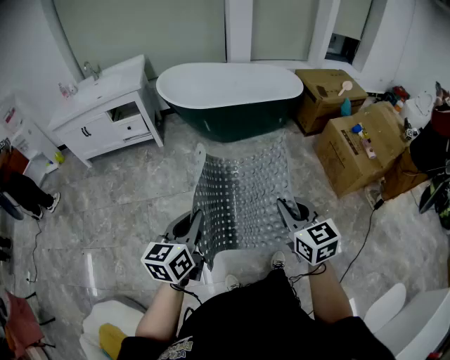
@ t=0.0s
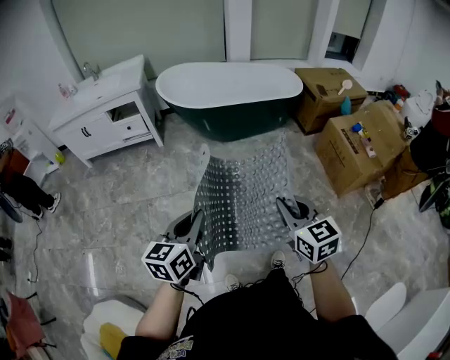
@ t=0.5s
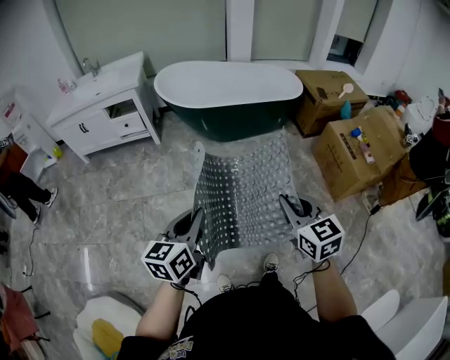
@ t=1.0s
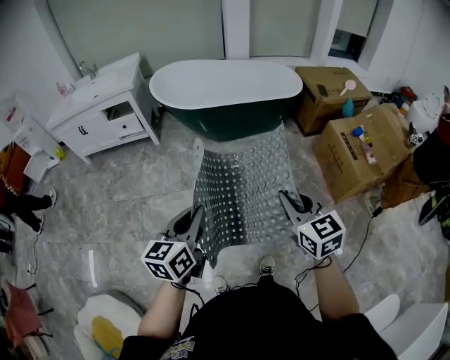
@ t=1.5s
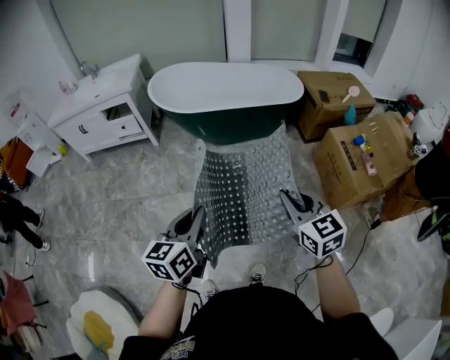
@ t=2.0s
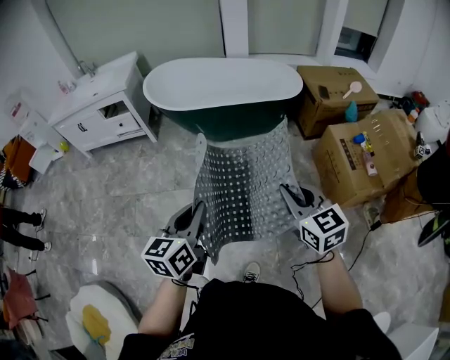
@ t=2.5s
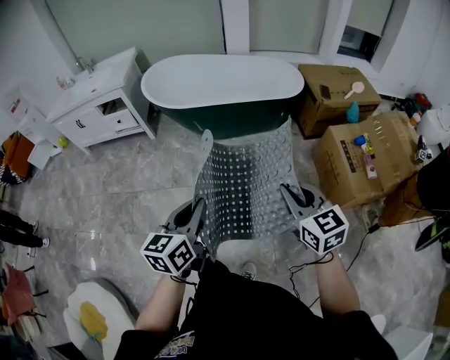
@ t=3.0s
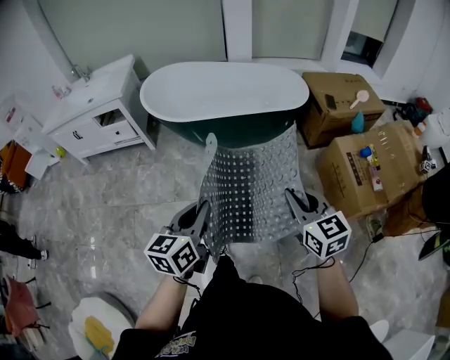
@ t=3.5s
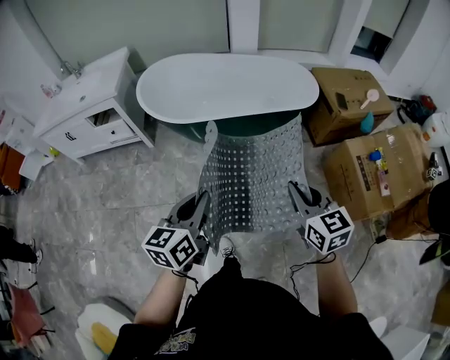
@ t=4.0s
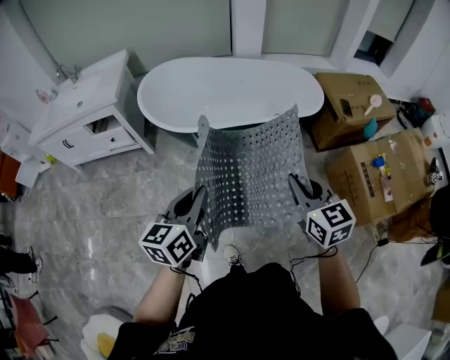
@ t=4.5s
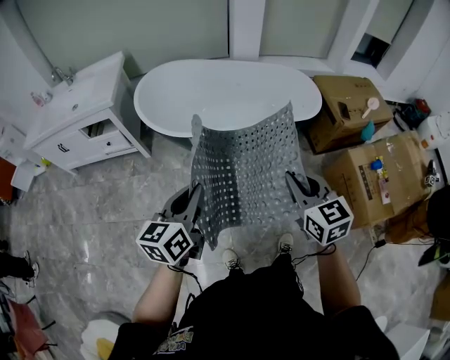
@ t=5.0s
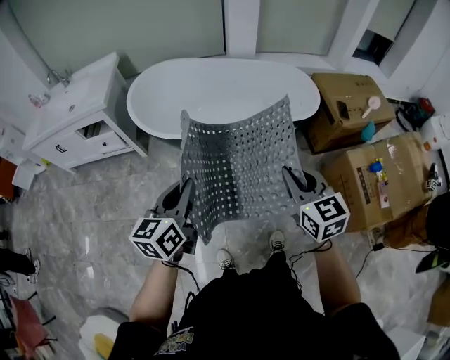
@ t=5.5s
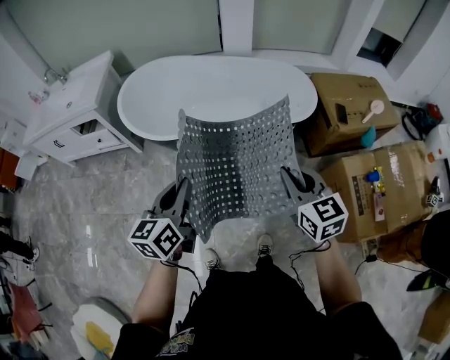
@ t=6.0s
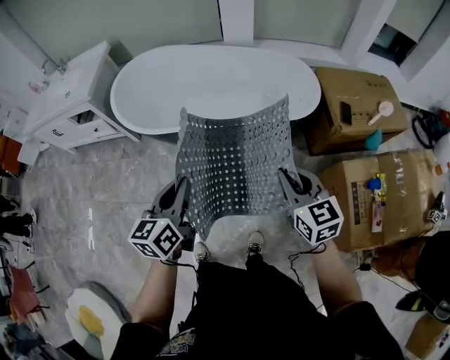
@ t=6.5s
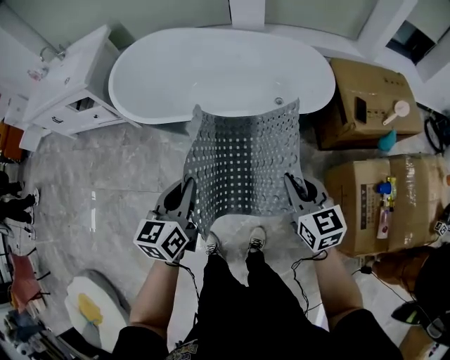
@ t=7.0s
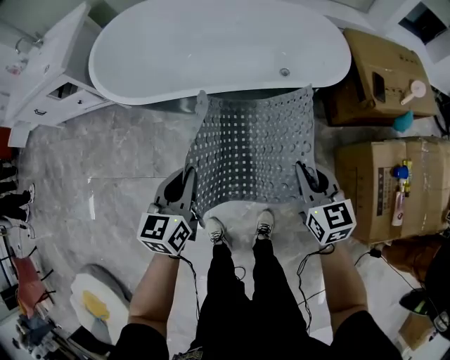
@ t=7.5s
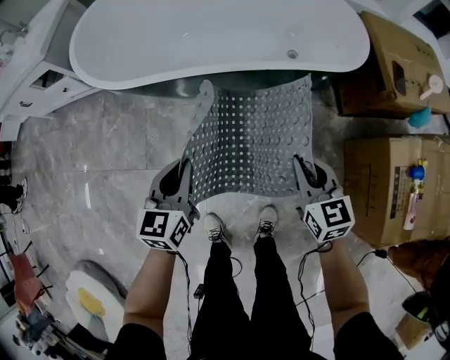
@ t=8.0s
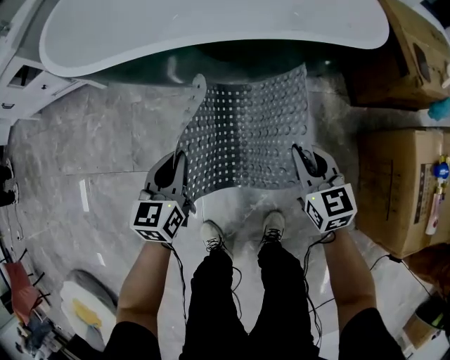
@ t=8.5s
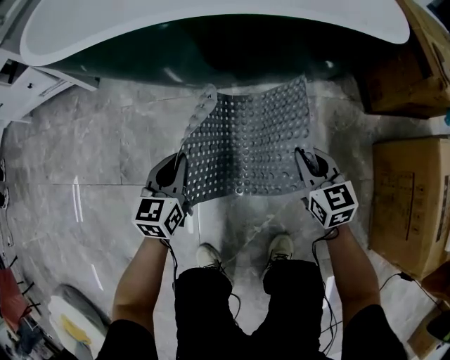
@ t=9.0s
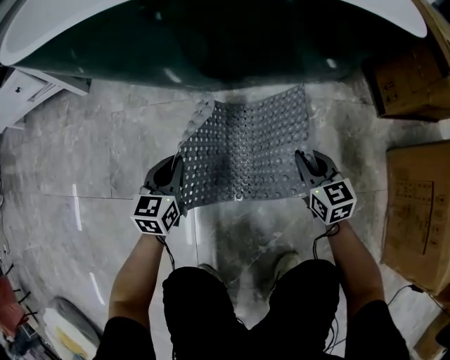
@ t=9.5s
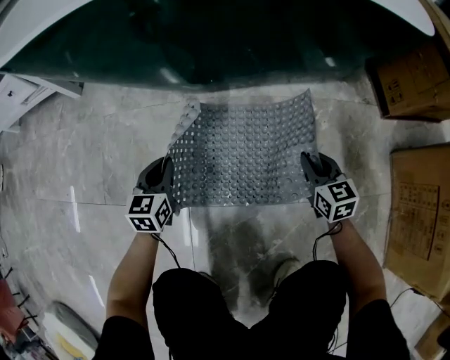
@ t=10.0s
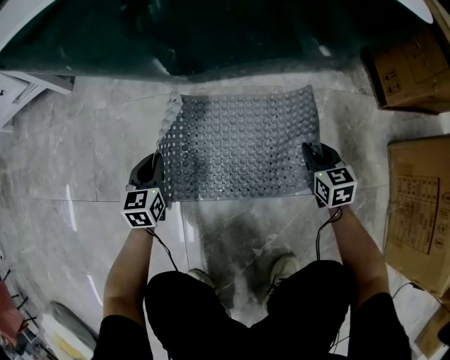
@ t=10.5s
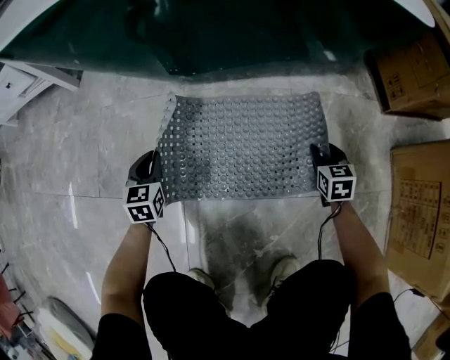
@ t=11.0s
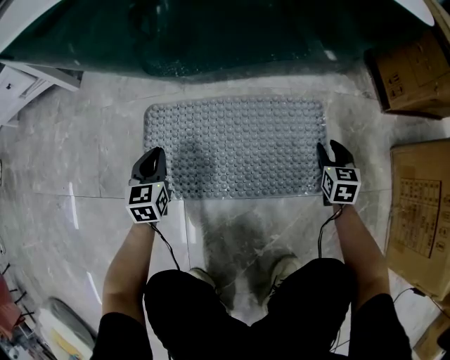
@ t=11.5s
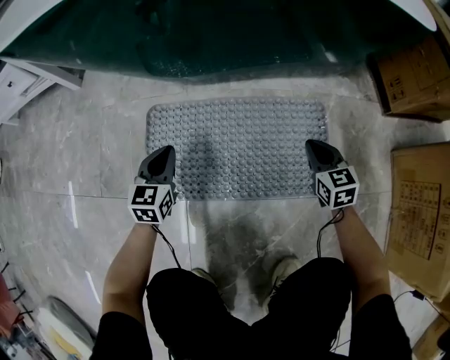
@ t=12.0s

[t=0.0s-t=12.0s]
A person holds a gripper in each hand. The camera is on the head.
t=0.0s to t=2.0s: The two grippers go roughly 20 cm to the right and forward.
t=2.0s to t=4.0s: The grippers both shift forward by some 30 cm.
t=4.0s to t=6.0s: The right gripper moves forward and to the right, some 20 cm, while the left gripper is displaced forward by roughly 20 cm.
t=6.0s to t=8.0s: Both grippers travel together downward, roughly 35 cm.
t=8.0s to t=10.0s: Both grippers move downward, some 50 cm.
t=10.0s to t=12.0s: The right gripper travels to the right and back again, roughly 10 cm each way, and opens, then closes once more.

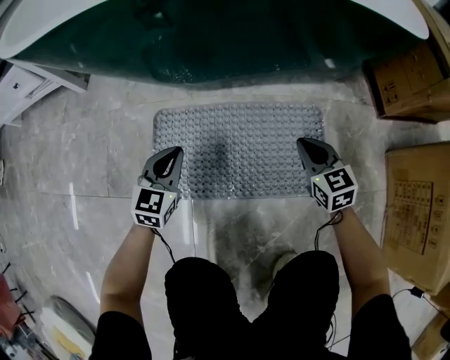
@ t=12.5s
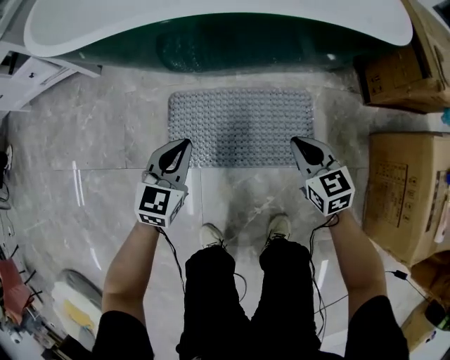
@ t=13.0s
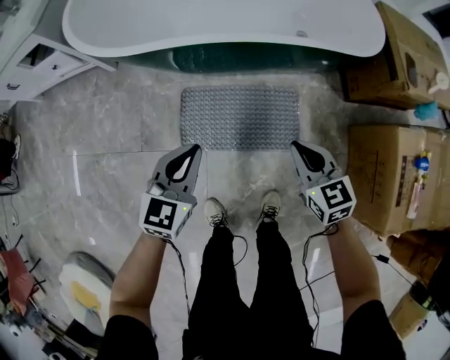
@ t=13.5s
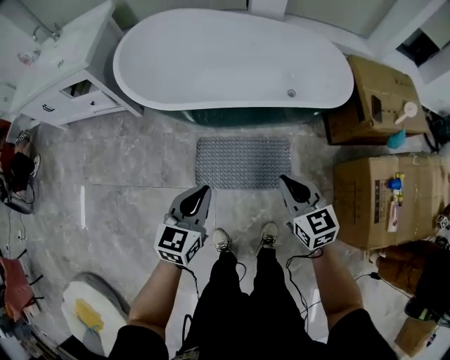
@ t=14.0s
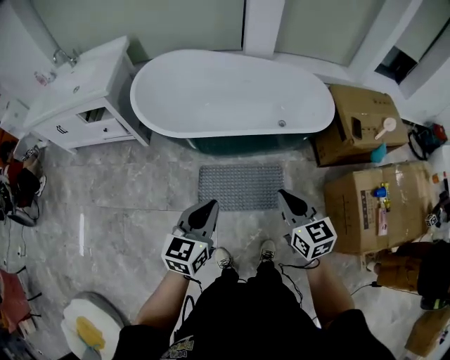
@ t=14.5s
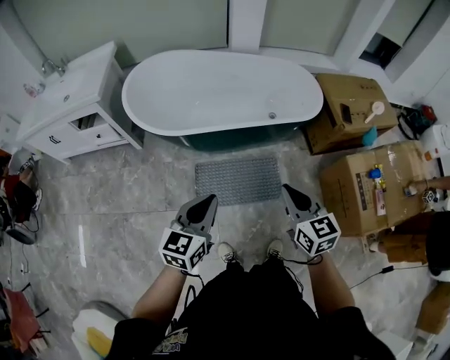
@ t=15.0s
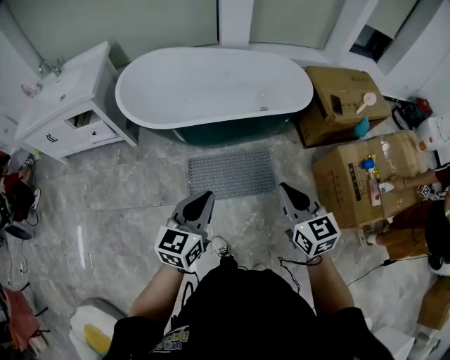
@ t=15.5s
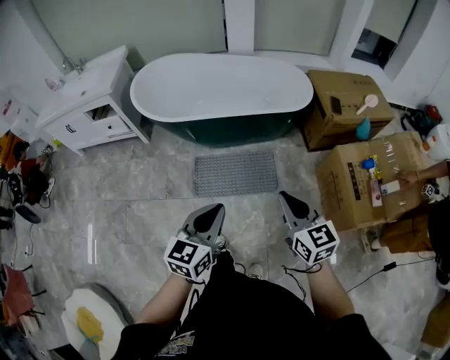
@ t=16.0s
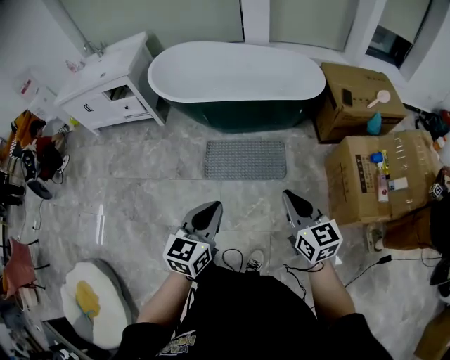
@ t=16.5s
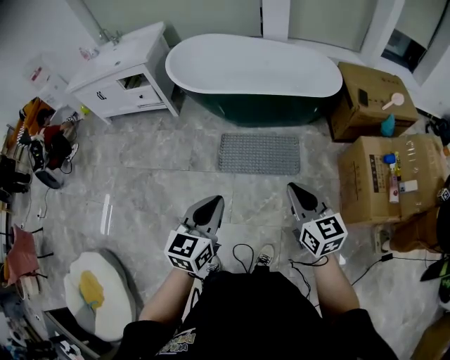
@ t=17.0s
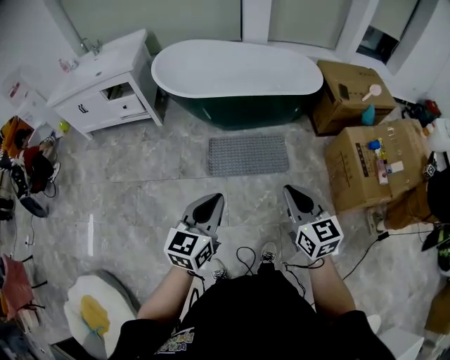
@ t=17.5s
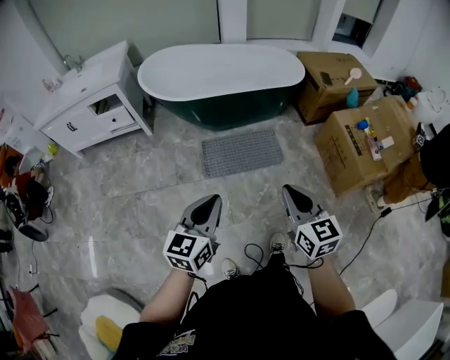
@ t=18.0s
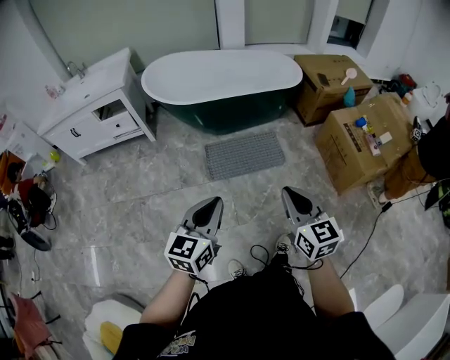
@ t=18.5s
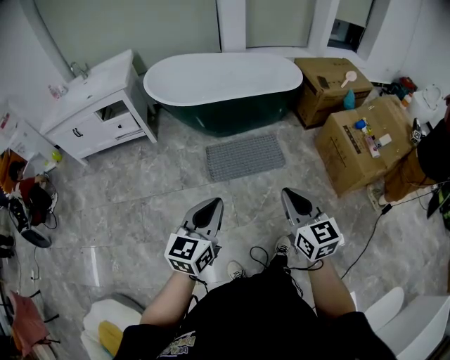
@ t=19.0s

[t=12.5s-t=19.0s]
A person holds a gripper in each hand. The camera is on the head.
t=12.5s to t=14.5s: Both grippers travel together upward, some 80 cm. The left gripper swivels roughly 20 degrees.
t=14.5s to t=17.0s: Both grippers travel together backward, some 35 cm.
t=17.0s to t=19.0s: The right gripper shifts approximately 25 cm backward and to the left; the left gripper heads to the left and backward, covering roughly 20 cm.

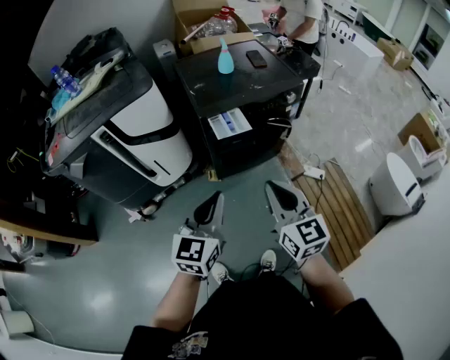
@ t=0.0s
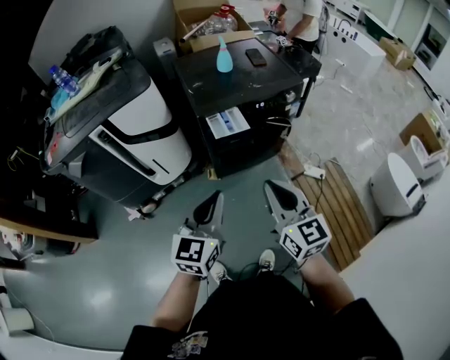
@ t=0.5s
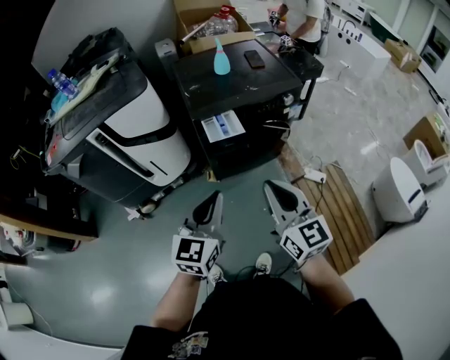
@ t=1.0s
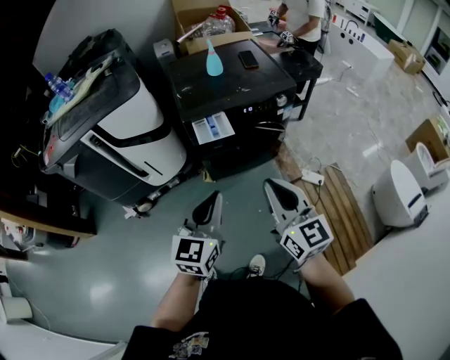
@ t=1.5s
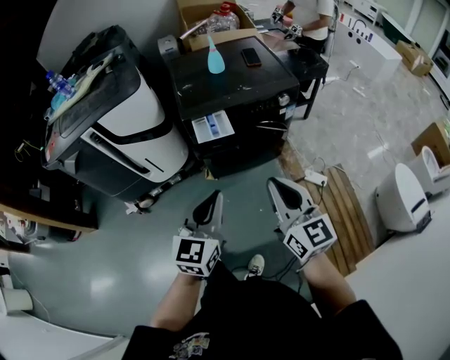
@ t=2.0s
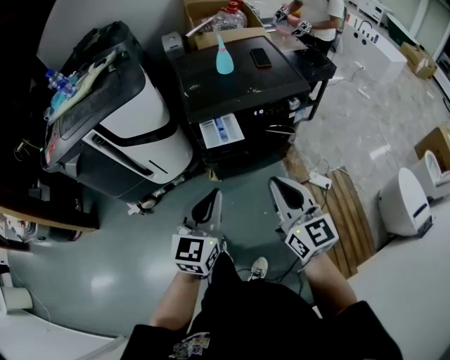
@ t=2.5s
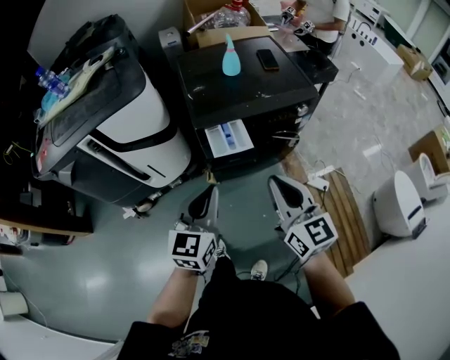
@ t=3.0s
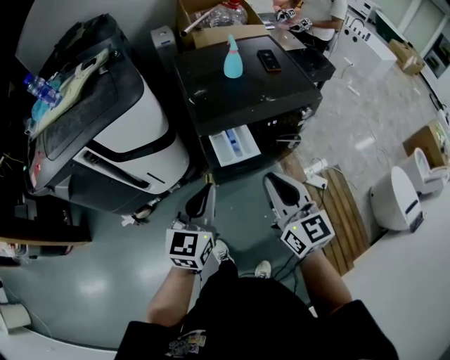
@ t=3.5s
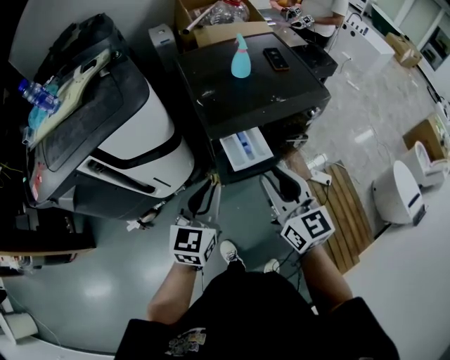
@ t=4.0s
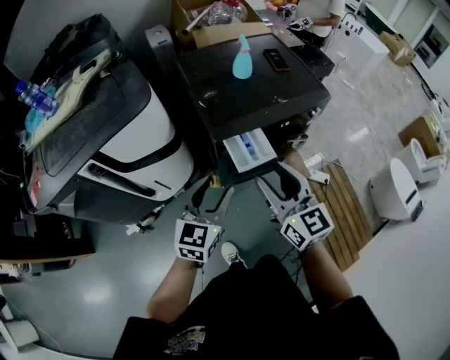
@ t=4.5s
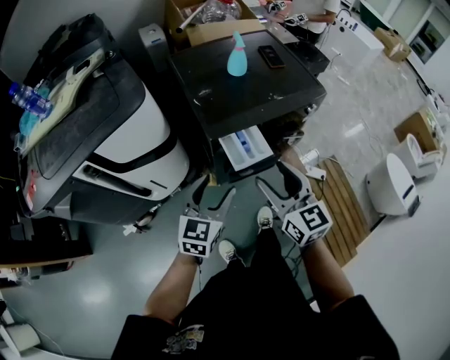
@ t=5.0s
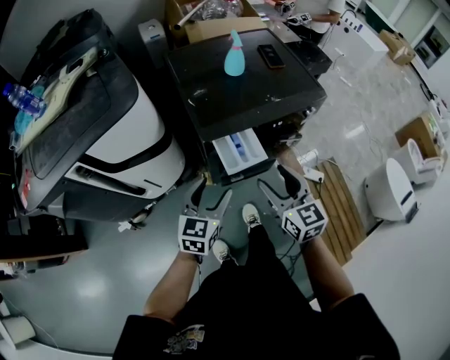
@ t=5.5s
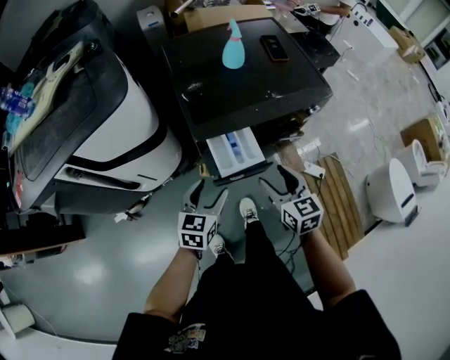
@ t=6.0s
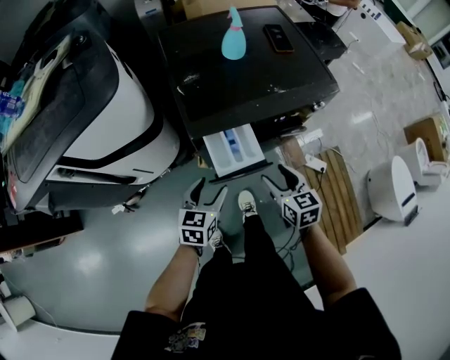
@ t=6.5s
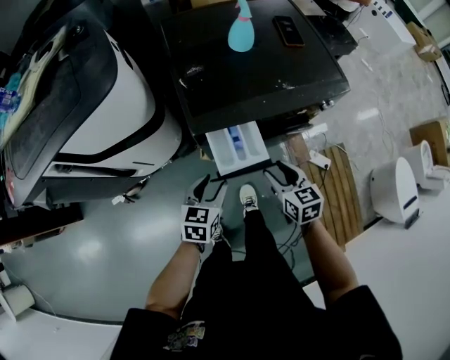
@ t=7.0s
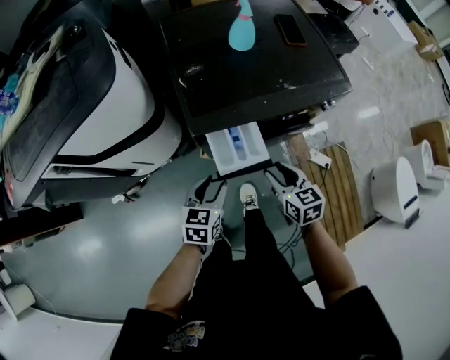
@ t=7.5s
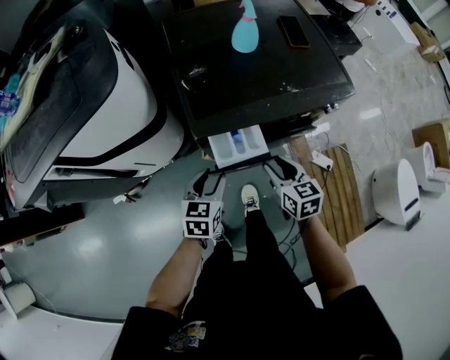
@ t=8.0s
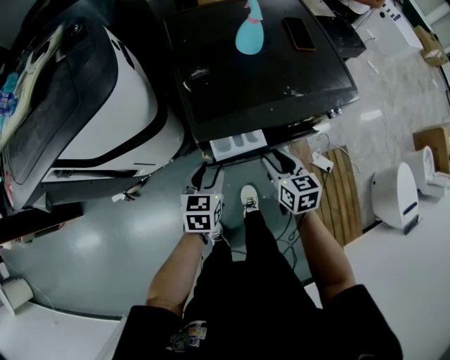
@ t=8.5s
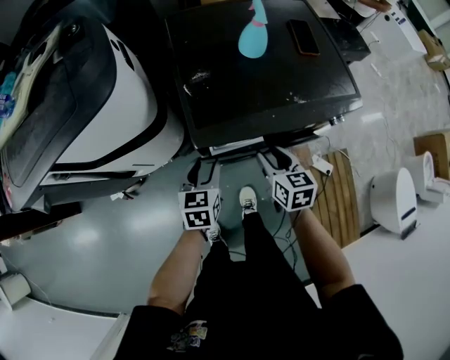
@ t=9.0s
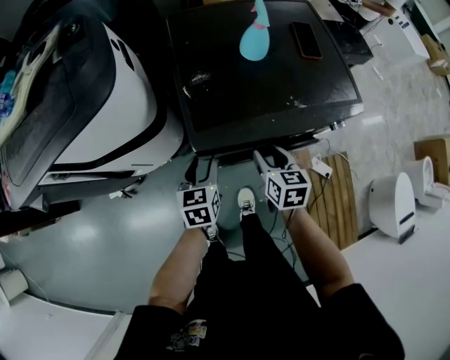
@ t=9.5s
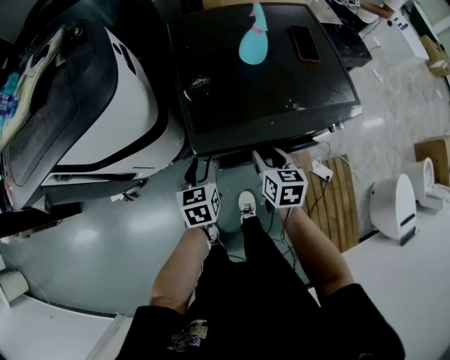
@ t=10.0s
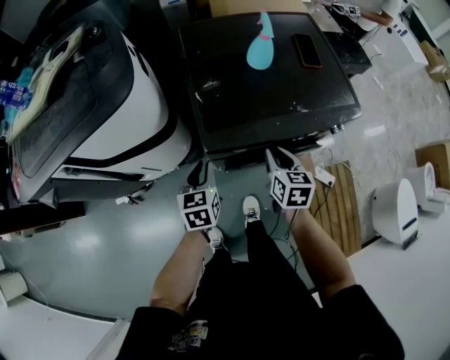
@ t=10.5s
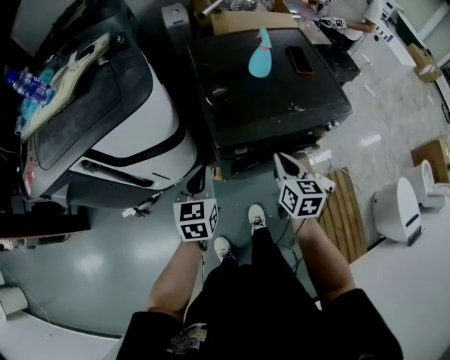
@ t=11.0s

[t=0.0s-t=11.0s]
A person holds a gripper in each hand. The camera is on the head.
t=0.0s to t=2.0s: The two grippers go approximately 15 cm to the right.
t=2.0s to t=3.5s: The grippers both shift forward and to the left by some 20 cm.
t=3.5s to t=5.5s: The two grippers go approximately 10 cm downward and forward. The right gripper opens up. The left gripper opens up.
t=5.5s to t=7.5s: Both grippers travel together downward and forward, roughly 15 cm. The right gripper swivels about 20 degrees, and closes up, while the left gripper closes up.
t=7.5s to t=9.0s: Both grippers move forward, some 10 cm.
t=9.0s to t=11.0s: The right gripper is displaced upward and backward by some 10 cm, and closes. Meanwhile the left gripper shifts some 15 cm upward and to the left, and closes up.
